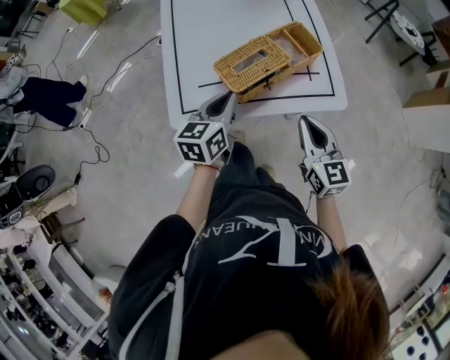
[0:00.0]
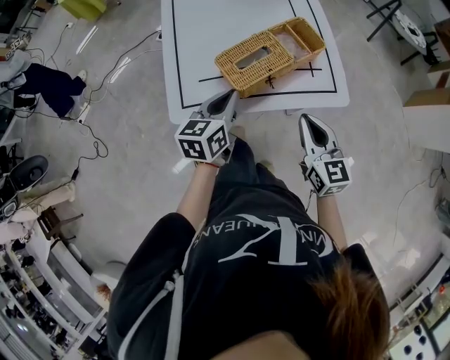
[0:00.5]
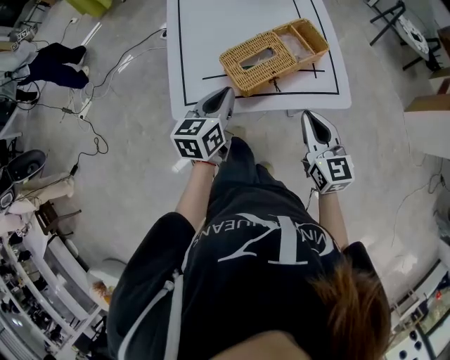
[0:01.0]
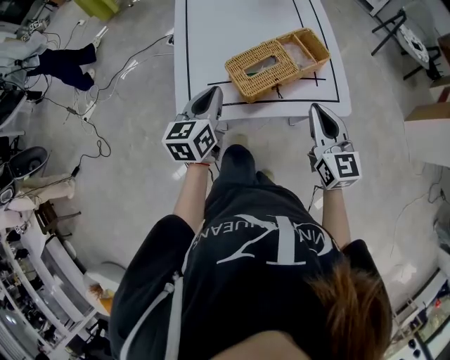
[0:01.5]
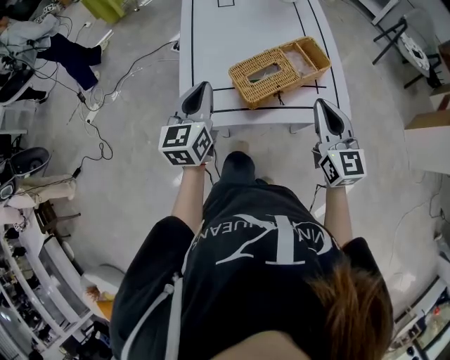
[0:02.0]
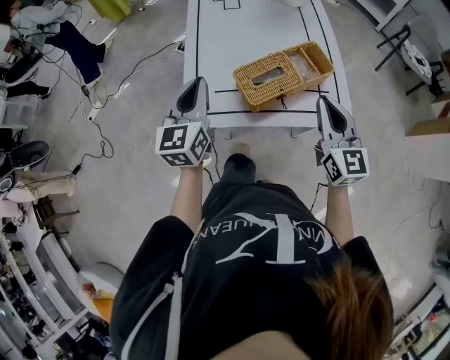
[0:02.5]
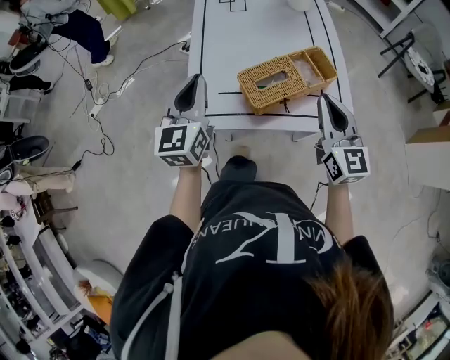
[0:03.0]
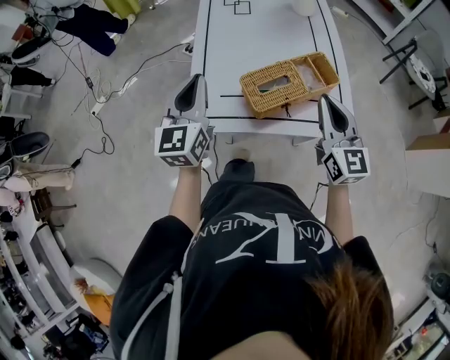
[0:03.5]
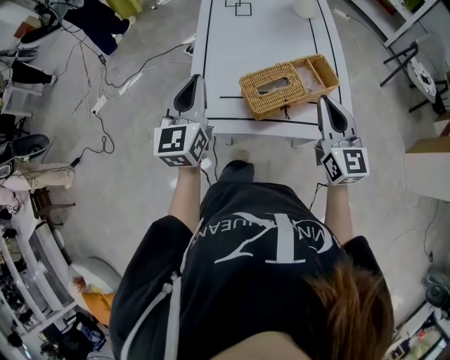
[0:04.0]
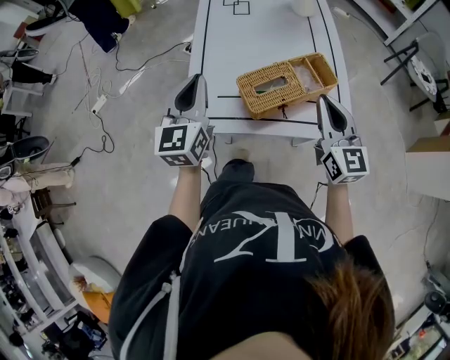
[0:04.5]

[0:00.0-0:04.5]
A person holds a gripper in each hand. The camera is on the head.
0:00.0 to 0:02.0: The right gripper moves upward, about 5 cm. Meanwhile the left gripper shifts roughly 10 cm to the left and upward, and turns by approximately 20 degrees.
0:02.0 to 0:04.5: The left gripper is displaced upward by some 5 cm; the right gripper shifts by approximately 5 cm.

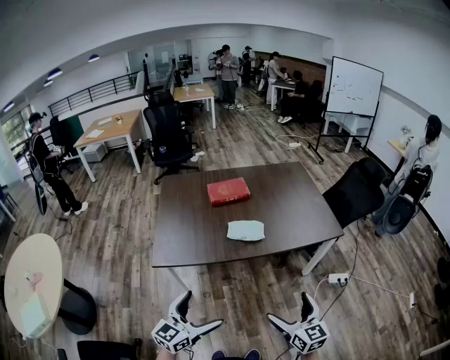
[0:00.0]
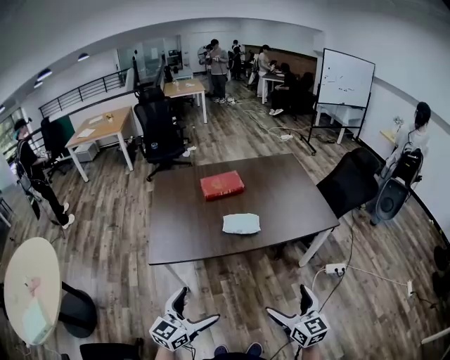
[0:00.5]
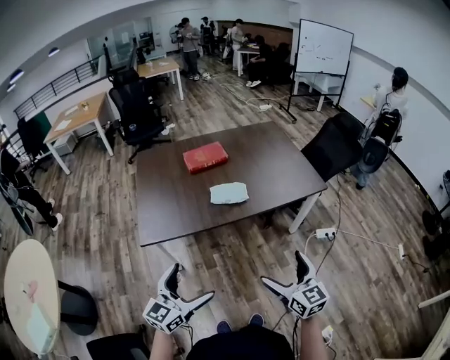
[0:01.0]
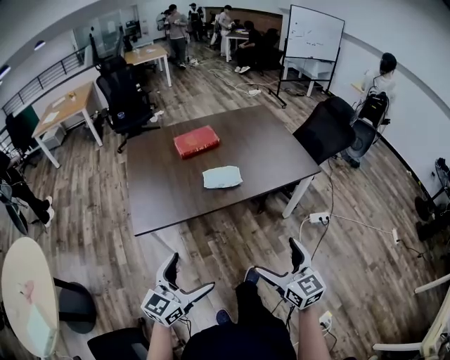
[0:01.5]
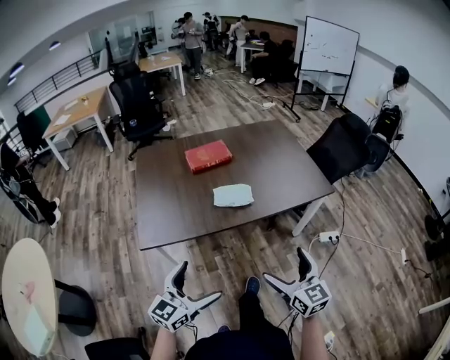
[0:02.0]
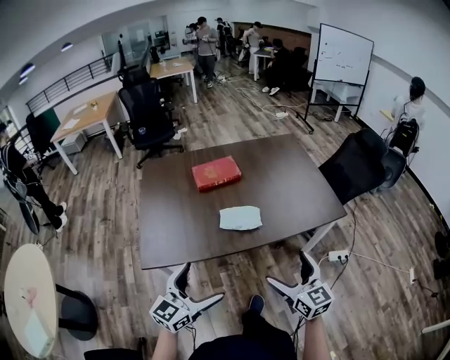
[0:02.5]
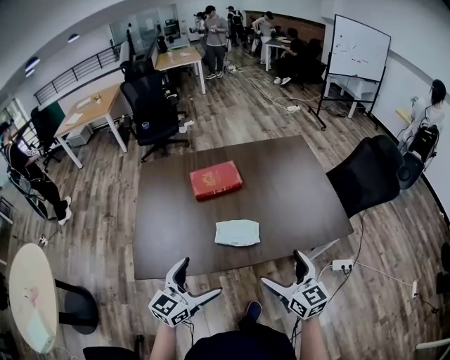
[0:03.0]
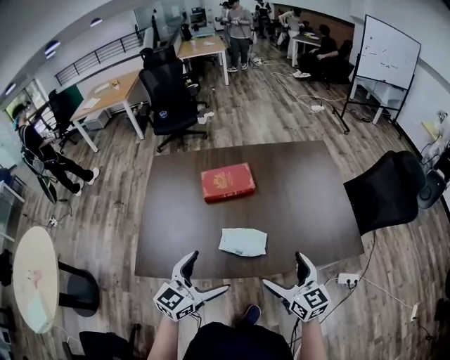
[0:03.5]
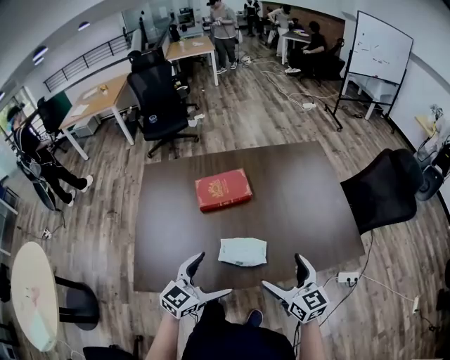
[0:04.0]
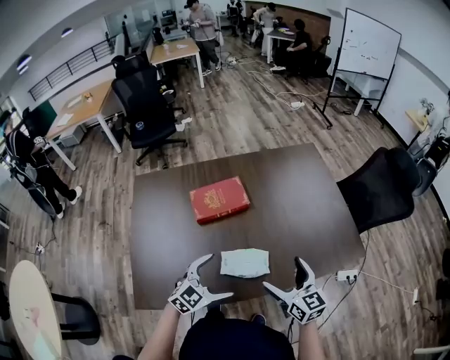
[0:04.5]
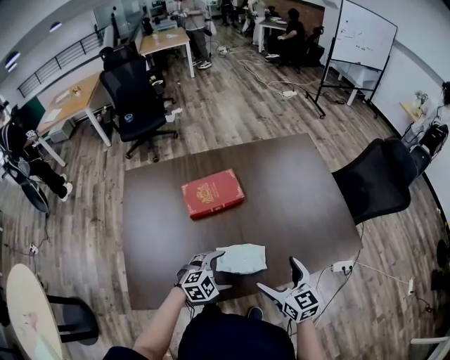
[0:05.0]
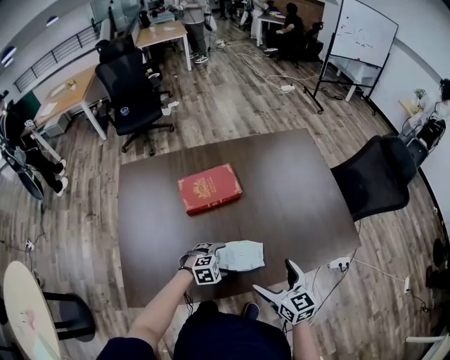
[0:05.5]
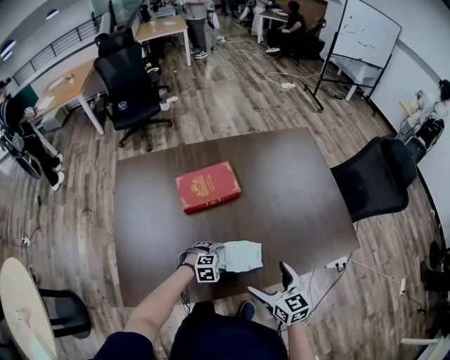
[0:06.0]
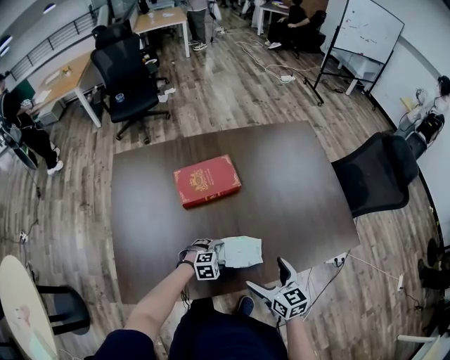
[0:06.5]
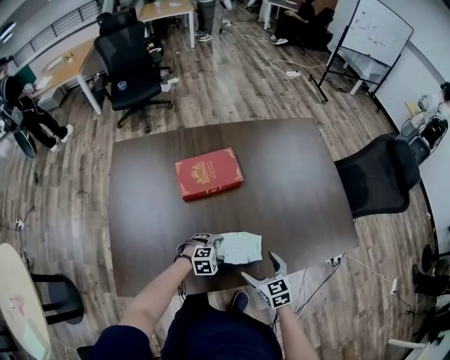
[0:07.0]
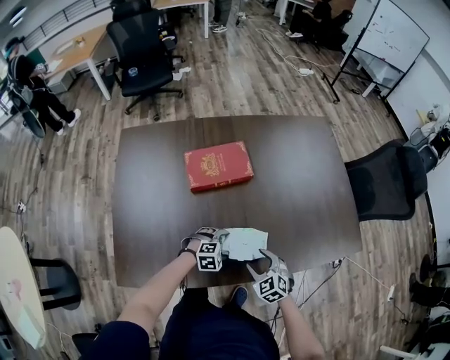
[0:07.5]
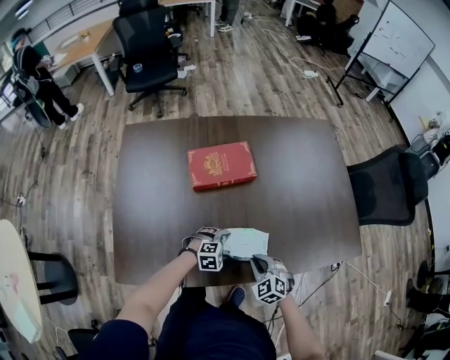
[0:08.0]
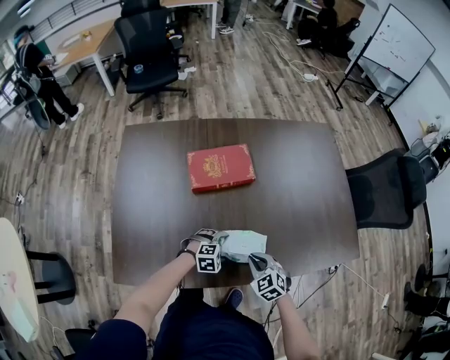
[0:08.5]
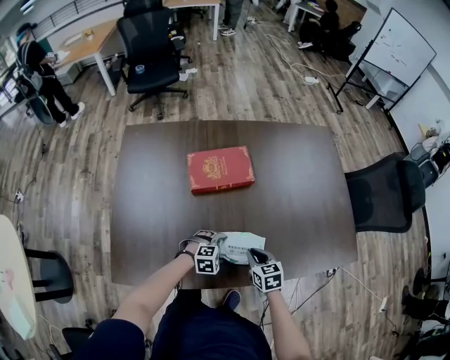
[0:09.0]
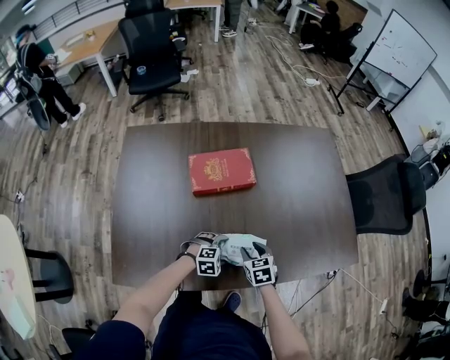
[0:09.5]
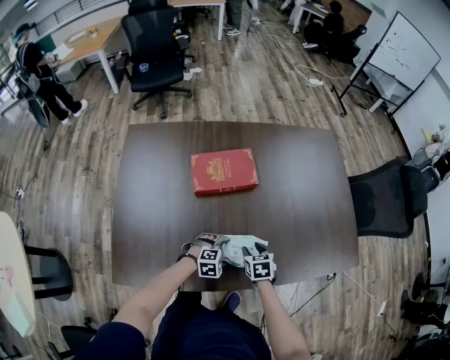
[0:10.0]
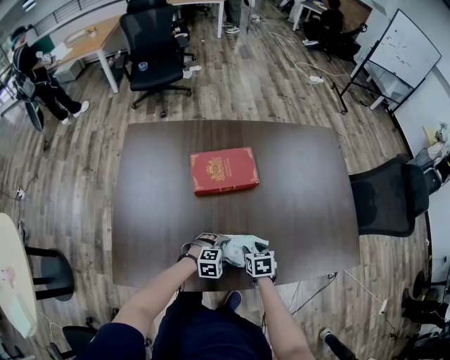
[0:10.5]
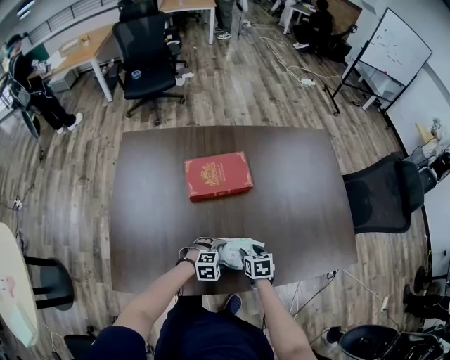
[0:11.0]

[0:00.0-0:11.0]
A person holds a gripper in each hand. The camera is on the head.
0:00.0 to 0:02.0: The right gripper moves roughly 5 cm; the left gripper changes place by roughly 5 cm.
0:02.0 to 0:03.5: Both grippers move forward, about 35 cm.
0:03.5 to 0:05.5: The right gripper travels downward, to the left and forward by roughly 15 cm. The left gripper heads downward and forward, covering approximately 35 cm, and tips its fingers downward by approximately 50 degrees.
0:05.5 to 0:07.5: The right gripper is displaced downward by some 15 cm, rotates roughly 40 degrees, and closes its fingers. Meanwhile the left gripper is displaced downward by approximately 5 cm.
0:07.5 to 0:09.0: The right gripper rotates roughly 30 degrees, and closes.
0:09.0 to 0:11.0: The right gripper ends up some 5 cm from where it was.

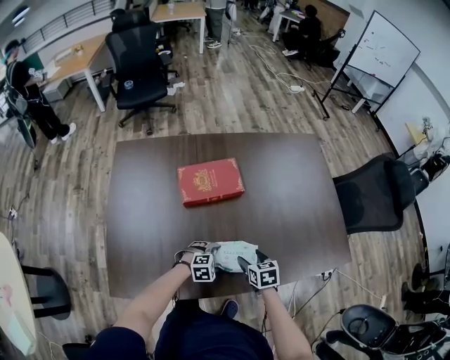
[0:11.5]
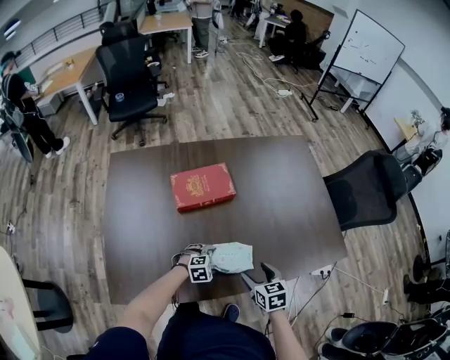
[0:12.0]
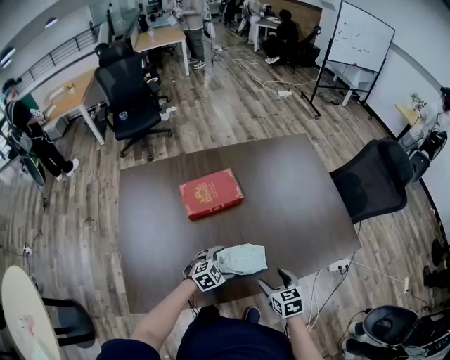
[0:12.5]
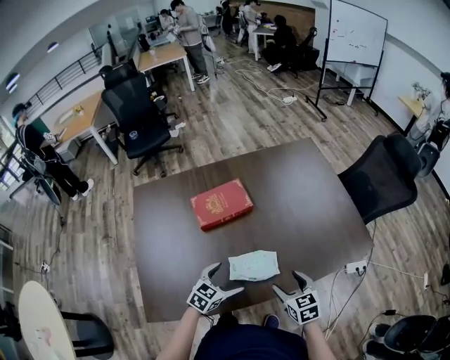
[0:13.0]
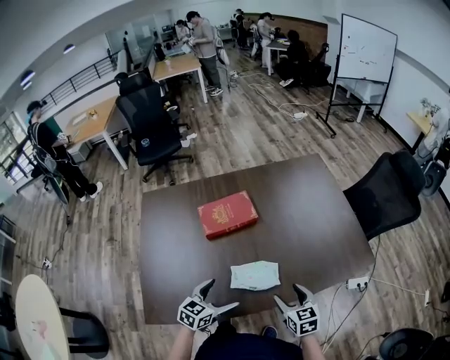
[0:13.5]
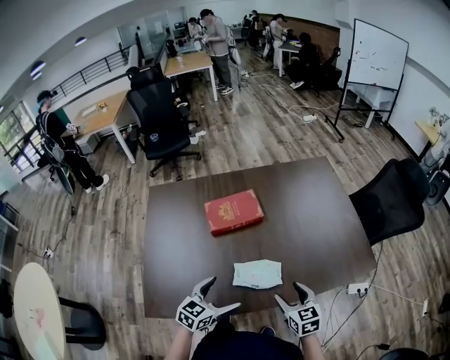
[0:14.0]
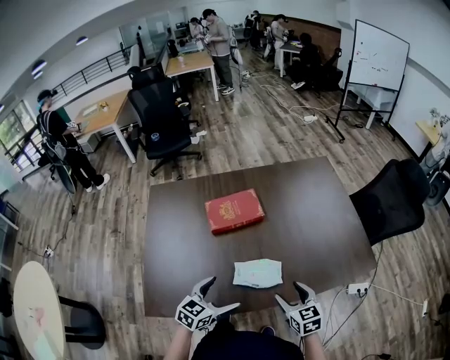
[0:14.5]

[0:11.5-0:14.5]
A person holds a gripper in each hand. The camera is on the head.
0:11.5 to 0:13.0: The left gripper heads upward, covering some 15 cm, and changes its angle by some 50 degrees, while the right gripper travels upward, backward and to the right by approximately 15 cm.
0:13.0 to 0:14.5: The left gripper goes some 10 cm upward and backward.

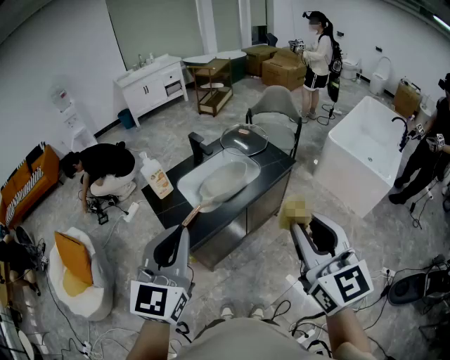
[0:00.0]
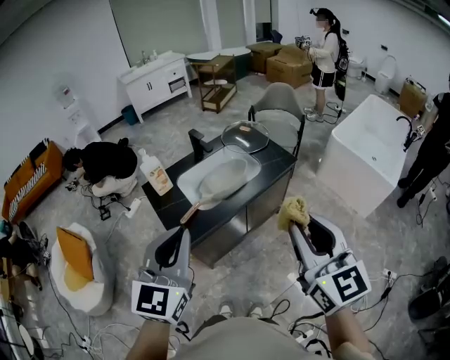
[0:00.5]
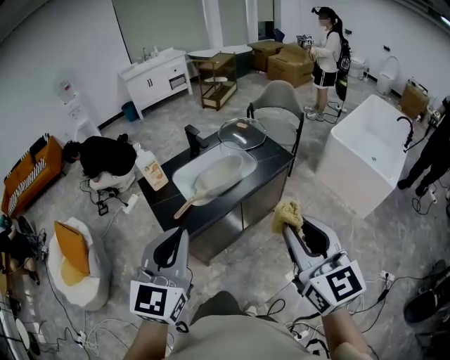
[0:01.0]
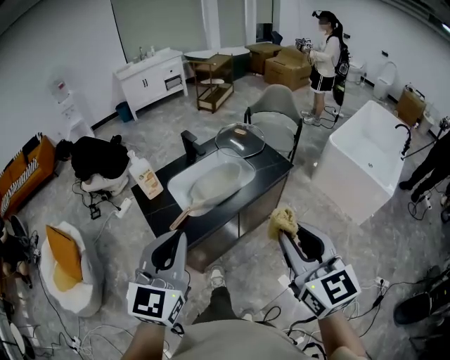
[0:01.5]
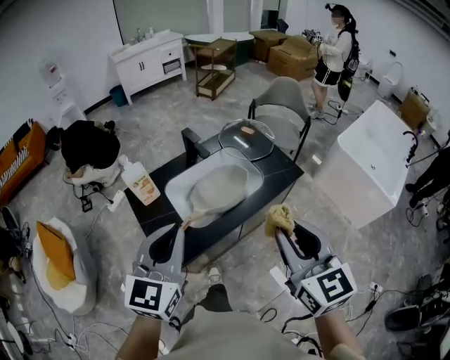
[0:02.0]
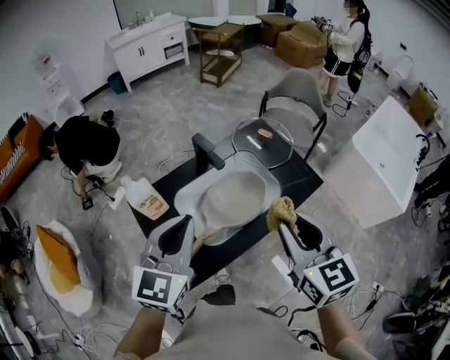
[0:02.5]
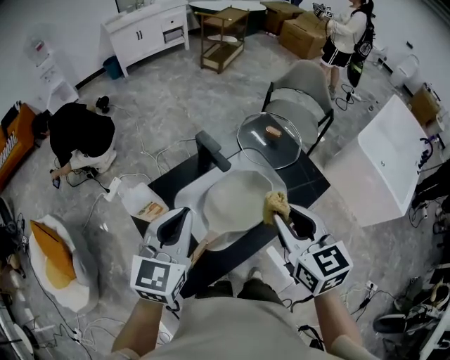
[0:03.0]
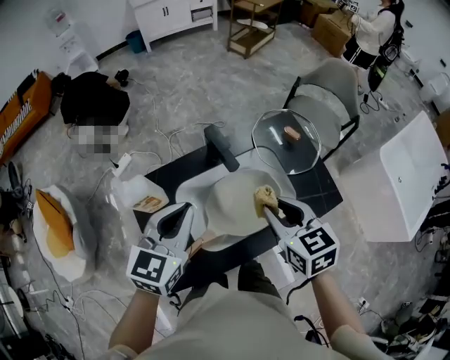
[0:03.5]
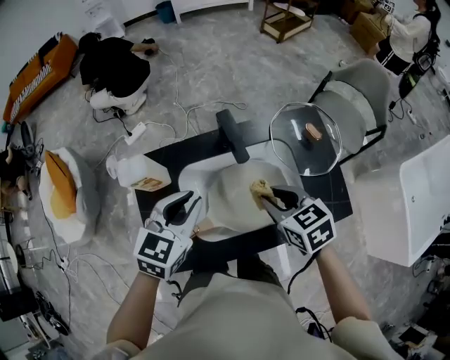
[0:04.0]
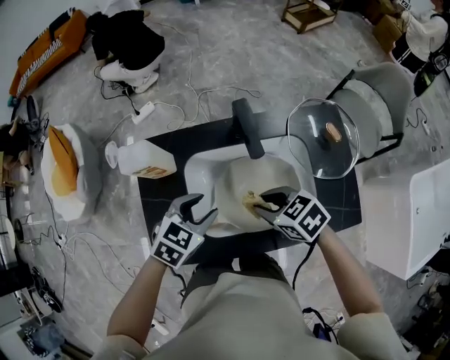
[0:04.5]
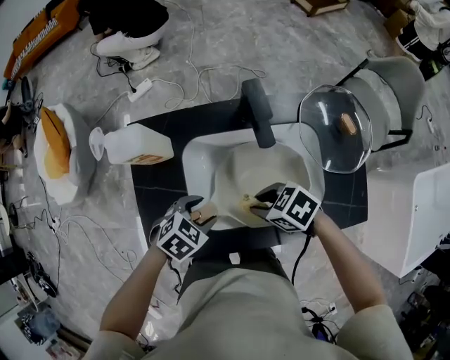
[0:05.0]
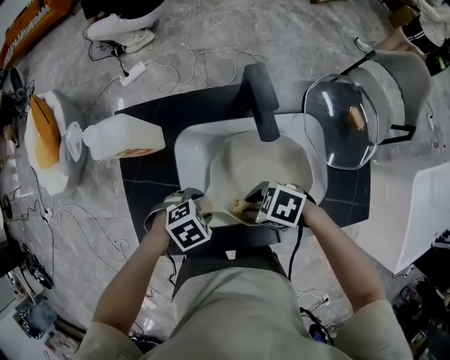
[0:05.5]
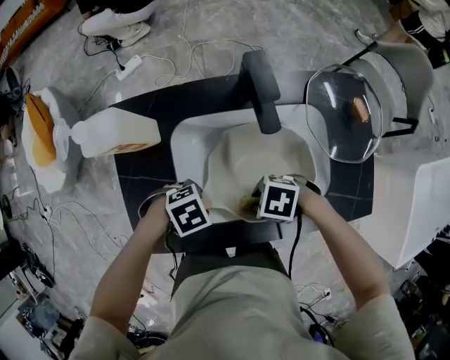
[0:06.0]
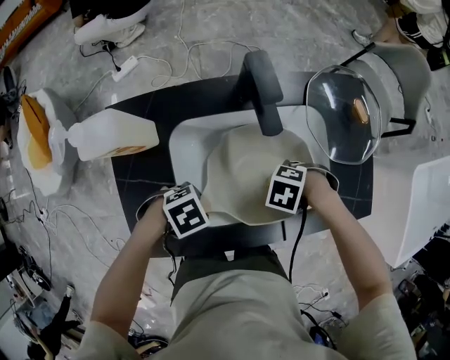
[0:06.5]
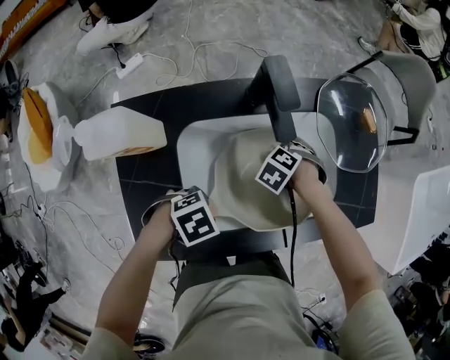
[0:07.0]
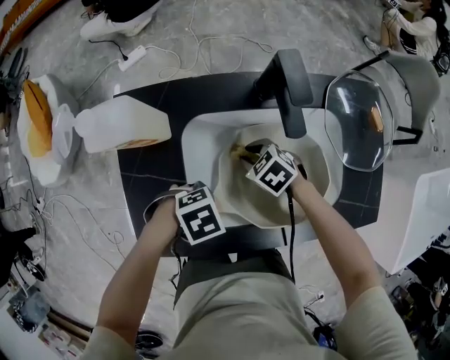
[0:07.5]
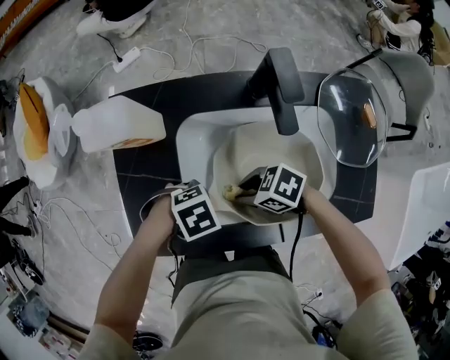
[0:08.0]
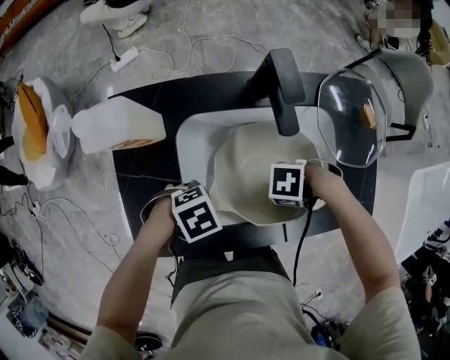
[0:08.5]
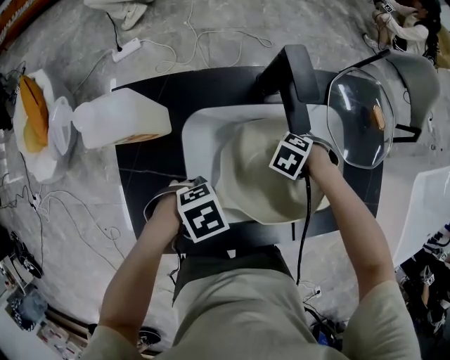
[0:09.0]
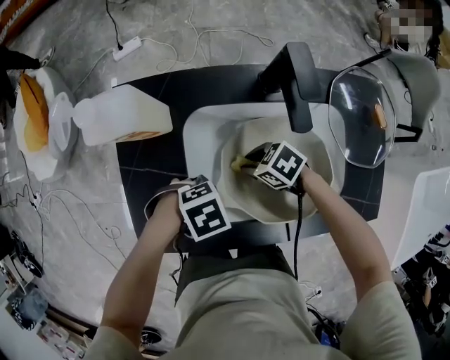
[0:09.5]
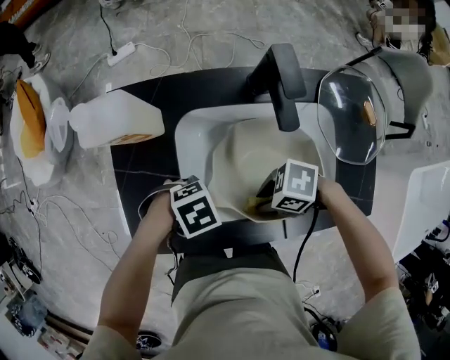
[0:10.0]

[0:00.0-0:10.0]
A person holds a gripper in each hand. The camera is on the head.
0:00.0 to 0:02.0: Both grippers move forward and downward, approximately 20 cm.
0:02.0 to 0:04.0: The right gripper shifts by about 40 cm, and points its fingers approximately 30 degrees further downward, while the left gripper shifts by about 30 cm, and changes its angle by some 30 degrees.
0:04.0 to 0:06.0: The two grippers go roughly 25 cm downward. The left gripper tilts its fingers about 30 degrees downward, and opens up. The right gripper turns by about 70 degrees.
0:06.0 to 0:08.0: The right gripper moves approximately 10 cm downward and comes back.
0:08.0 to 0:10.0: The right gripper travels downward and back again, roughly 10 cm each way.
